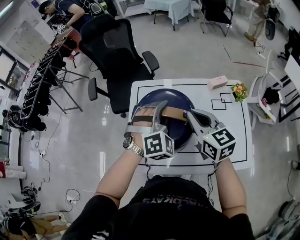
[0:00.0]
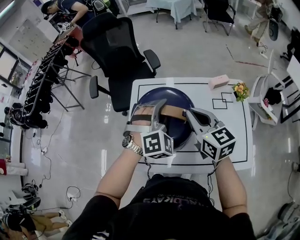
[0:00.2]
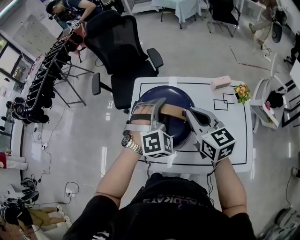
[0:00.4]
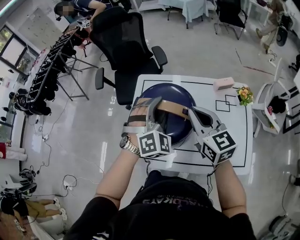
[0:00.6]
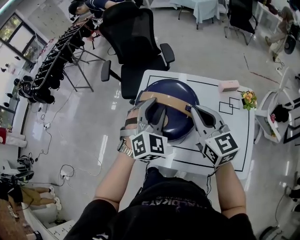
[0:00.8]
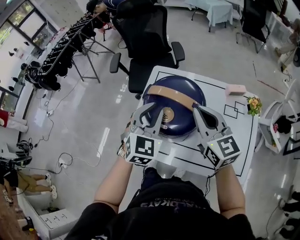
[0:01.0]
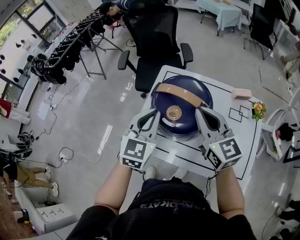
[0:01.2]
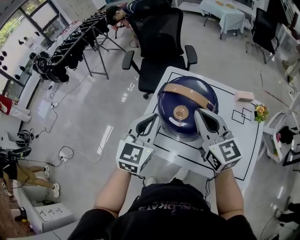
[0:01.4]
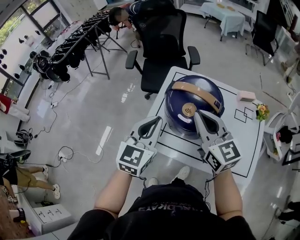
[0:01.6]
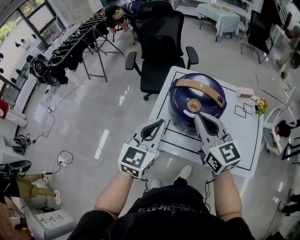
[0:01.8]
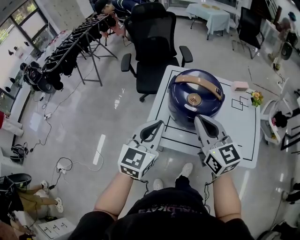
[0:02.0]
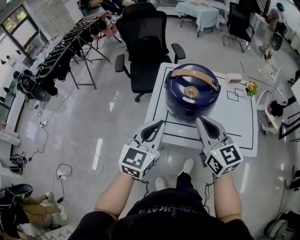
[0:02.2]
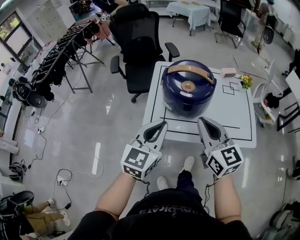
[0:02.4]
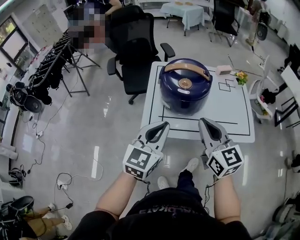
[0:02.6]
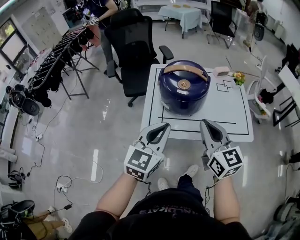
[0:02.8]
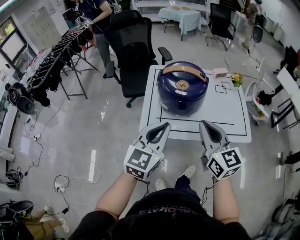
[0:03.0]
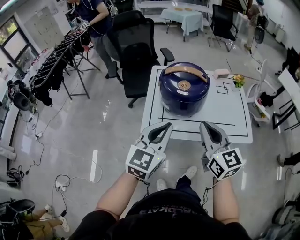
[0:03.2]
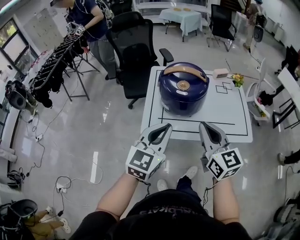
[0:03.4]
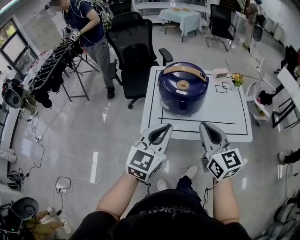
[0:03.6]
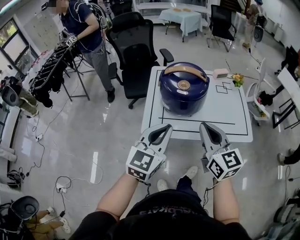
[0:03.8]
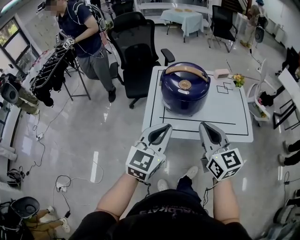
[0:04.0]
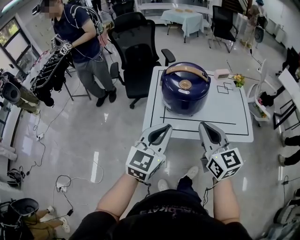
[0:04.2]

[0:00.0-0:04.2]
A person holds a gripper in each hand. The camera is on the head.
0:00.0 to 0:01.4: The right gripper travels to the left and backward by about 10 cm, and changes its angle by approximately 20 degrees, while the left gripper shifts some 20 cm to the left and backward, rotates around the line of its fingers by some 60 degrees, counterclockwise from behind, and closes up.
0:01.4 to 0:02.8: The two grippers go about 20 cm backward. The left gripper turns by some 30 degrees; the right gripper changes its angle by approximately 20 degrees.
0:02.8 to 0:04.2: The grippers make only small movements.

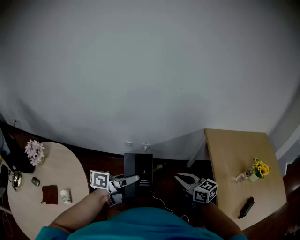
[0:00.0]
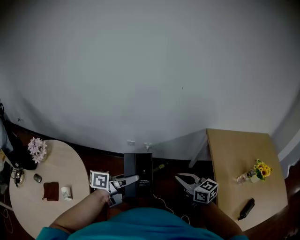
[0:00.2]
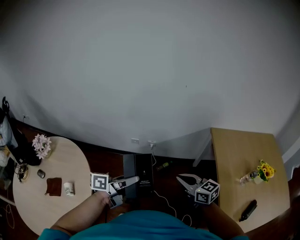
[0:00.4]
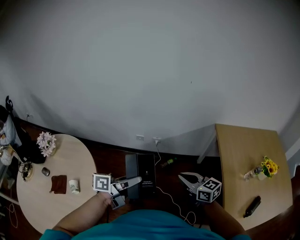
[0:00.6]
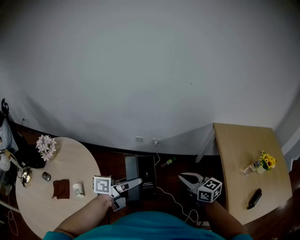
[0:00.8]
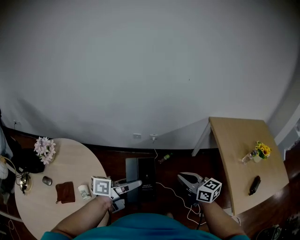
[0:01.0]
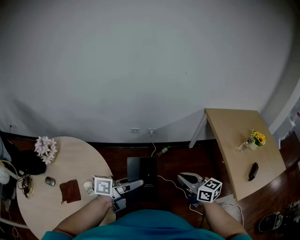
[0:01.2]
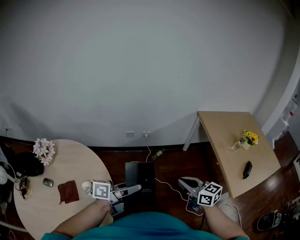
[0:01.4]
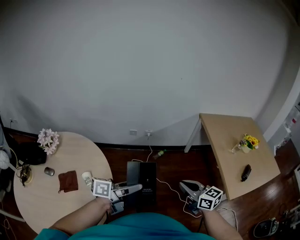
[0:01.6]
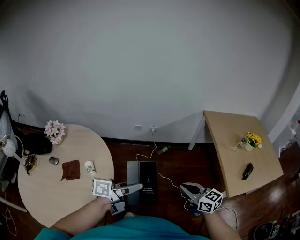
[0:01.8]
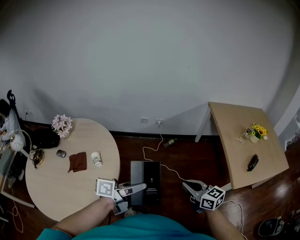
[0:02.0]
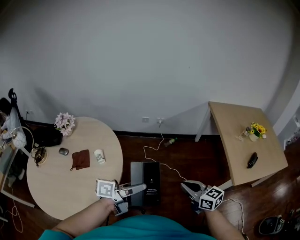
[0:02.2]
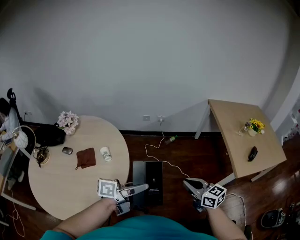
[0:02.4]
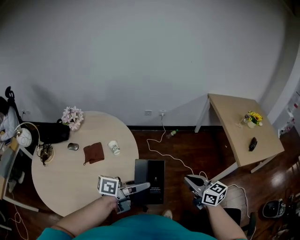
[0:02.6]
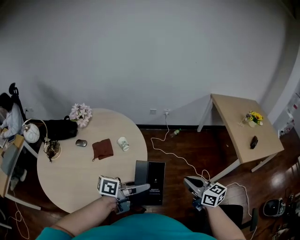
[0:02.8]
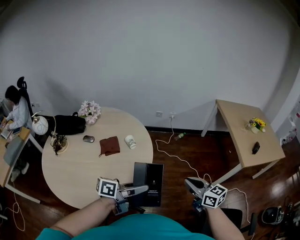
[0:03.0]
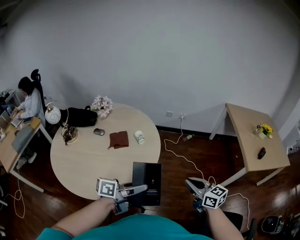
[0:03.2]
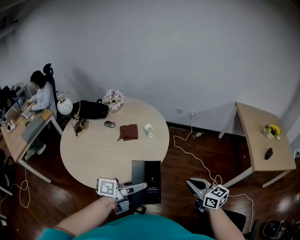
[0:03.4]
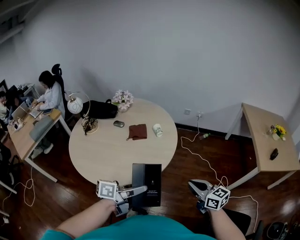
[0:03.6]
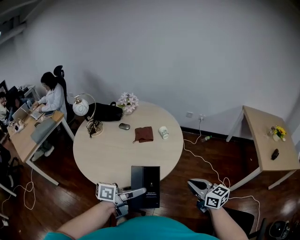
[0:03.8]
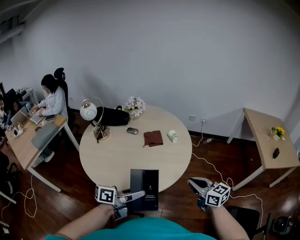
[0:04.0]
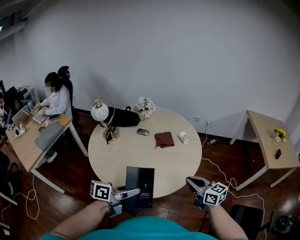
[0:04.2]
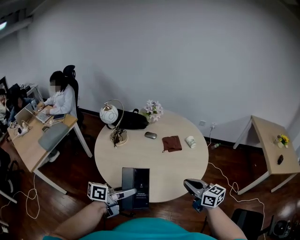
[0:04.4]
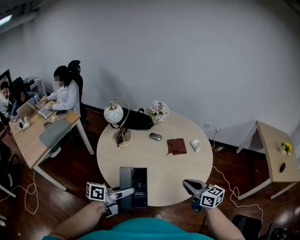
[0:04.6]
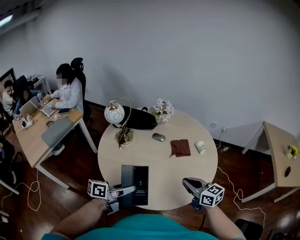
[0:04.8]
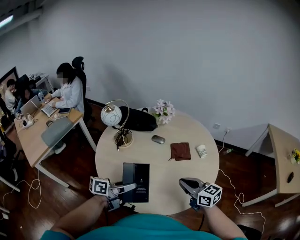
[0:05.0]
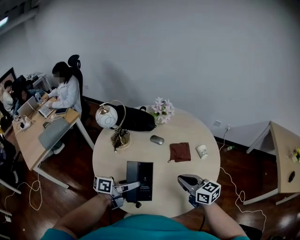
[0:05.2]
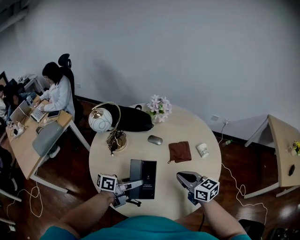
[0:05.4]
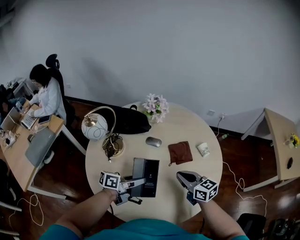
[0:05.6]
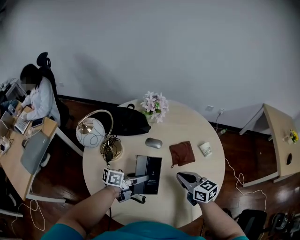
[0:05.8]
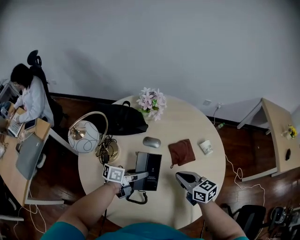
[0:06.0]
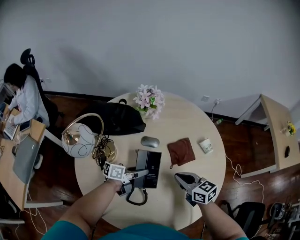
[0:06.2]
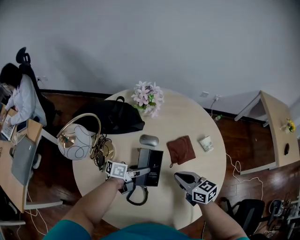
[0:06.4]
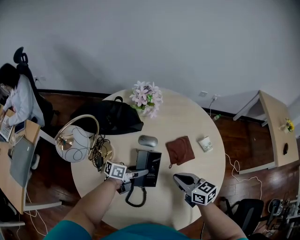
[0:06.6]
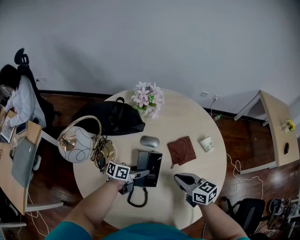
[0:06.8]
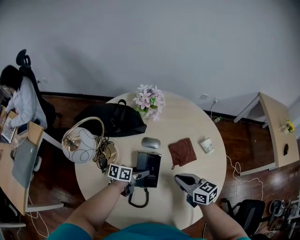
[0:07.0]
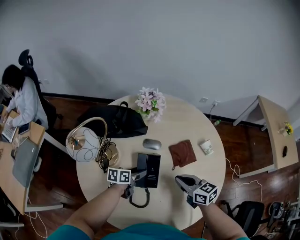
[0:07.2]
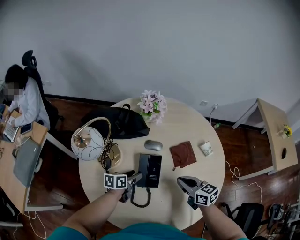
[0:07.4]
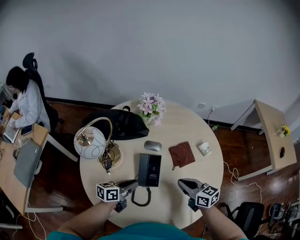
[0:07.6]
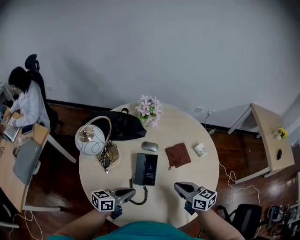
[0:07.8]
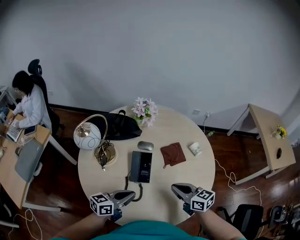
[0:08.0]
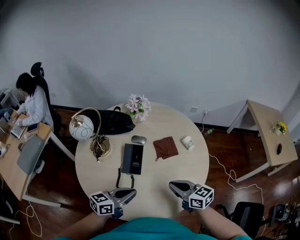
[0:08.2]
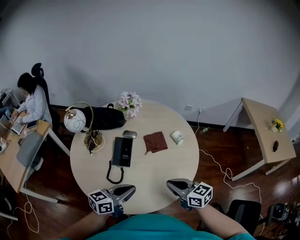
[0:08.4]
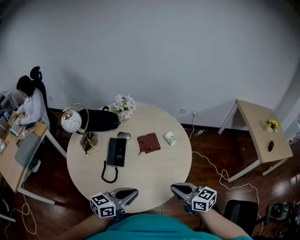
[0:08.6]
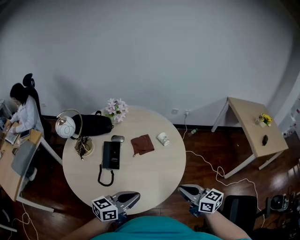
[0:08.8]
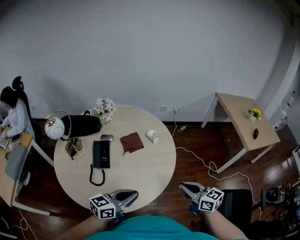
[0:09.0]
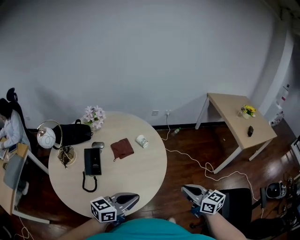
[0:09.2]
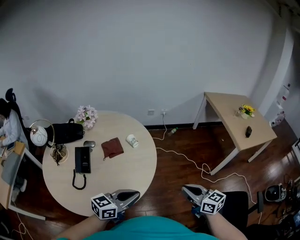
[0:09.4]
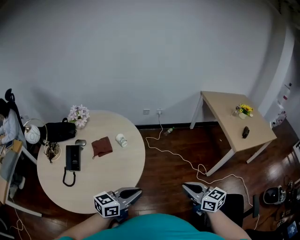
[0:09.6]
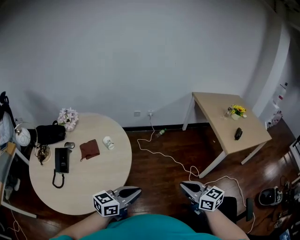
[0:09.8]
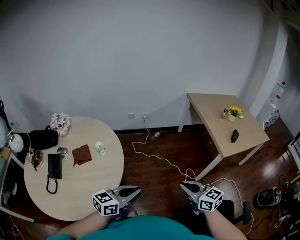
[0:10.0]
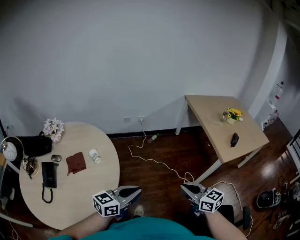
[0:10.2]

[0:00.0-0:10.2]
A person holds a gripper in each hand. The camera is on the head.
0:00.0 to 0:01.4: Both grippers move backward and to the left, some 25 cm.
0:01.4 to 0:03.0: The grippers both shift backward by approximately 35 cm.
0:03.0 to 0:04.4: The left gripper heads to the left and backward, covering about 40 cm. Meanwhile the right gripper heads to the left, covering some 35 cm.
0:04.4 to 0:05.8: The left gripper travels forward and downward by roughly 35 cm, while the right gripper travels forward, downward and to the left by some 30 cm.
0:05.8 to 0:07.2: The left gripper moves downward and forward, roughly 15 cm, swivels roughly 20 degrees, and opens its fingers.
0:07.2 to 0:08.8: The left gripper travels backward, upward and to the right by some 40 cm, rotates roughly 40 degrees, and closes up. The right gripper travels to the right, backward and upward by roughly 35 cm.
0:08.8 to 0:10.2: Both grippers are carried to the right and forward, some 40 cm.

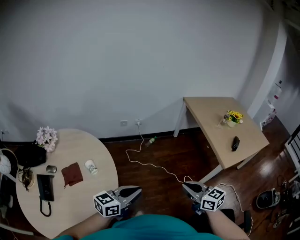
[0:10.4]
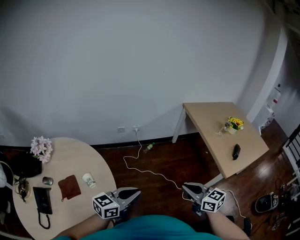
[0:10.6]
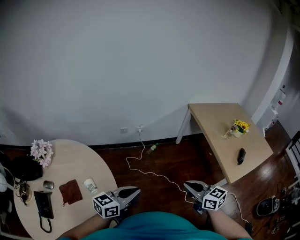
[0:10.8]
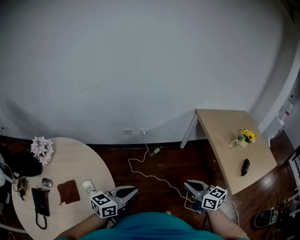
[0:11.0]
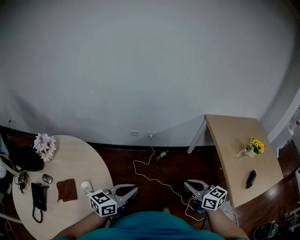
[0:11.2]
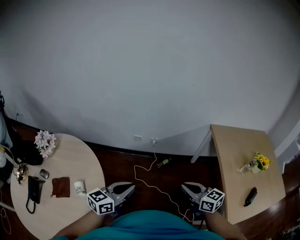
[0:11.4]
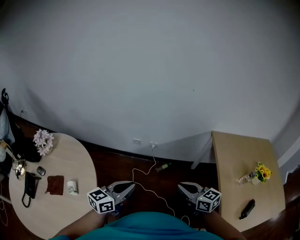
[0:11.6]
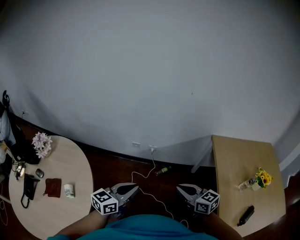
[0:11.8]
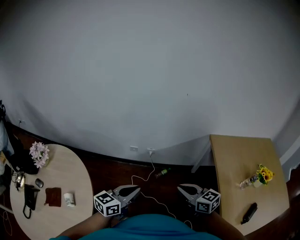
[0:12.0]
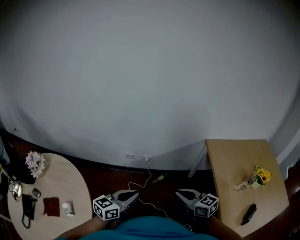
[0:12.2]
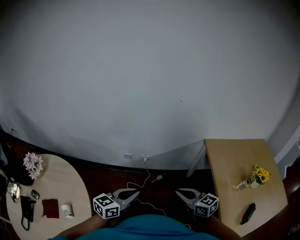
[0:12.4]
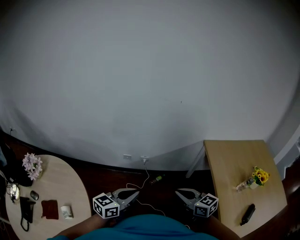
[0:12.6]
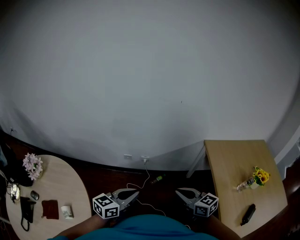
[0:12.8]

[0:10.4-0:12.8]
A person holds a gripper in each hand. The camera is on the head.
0:10.4 to 0:11.6: The grippers both shift forward by some 35 cm. The right gripper rotates approximately 20 degrees. The left gripper turns by roughly 20 degrees.
0:11.6 to 0:12.8: The two grippers go approximately 10 cm forward.

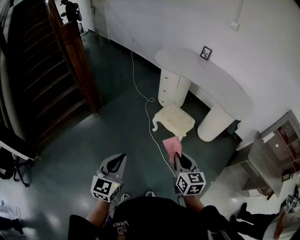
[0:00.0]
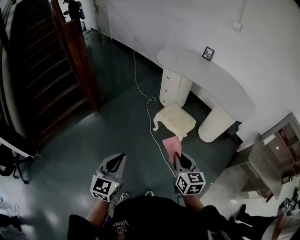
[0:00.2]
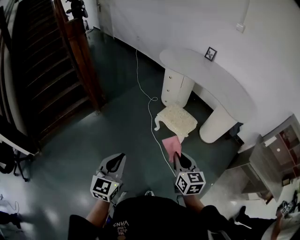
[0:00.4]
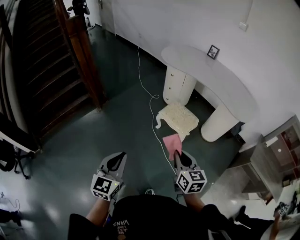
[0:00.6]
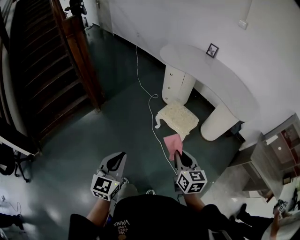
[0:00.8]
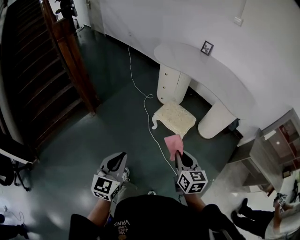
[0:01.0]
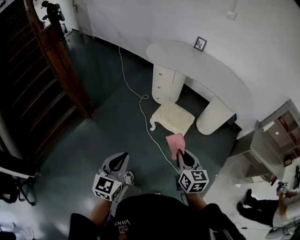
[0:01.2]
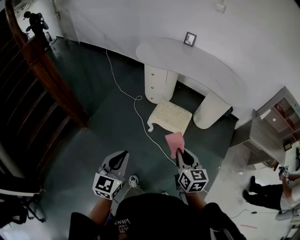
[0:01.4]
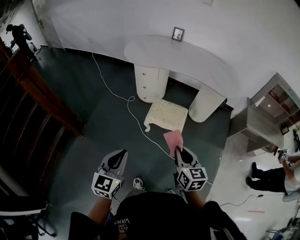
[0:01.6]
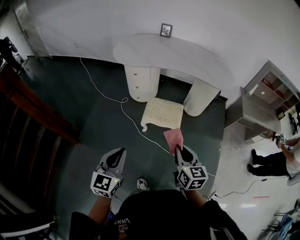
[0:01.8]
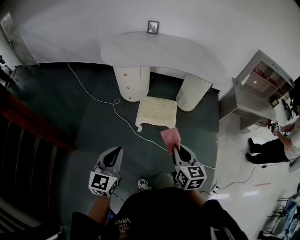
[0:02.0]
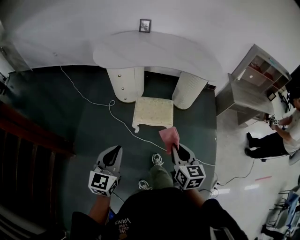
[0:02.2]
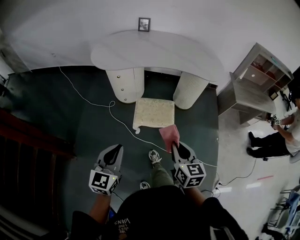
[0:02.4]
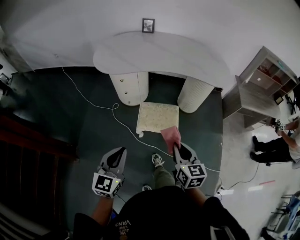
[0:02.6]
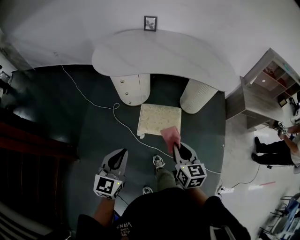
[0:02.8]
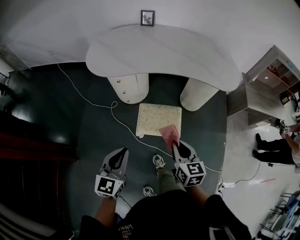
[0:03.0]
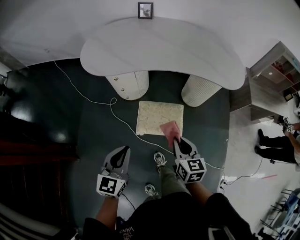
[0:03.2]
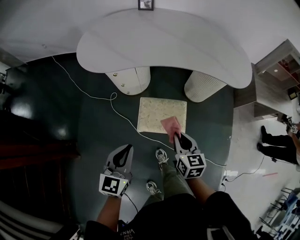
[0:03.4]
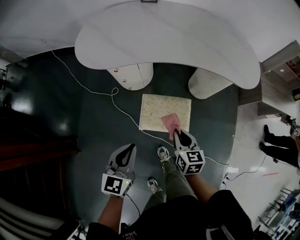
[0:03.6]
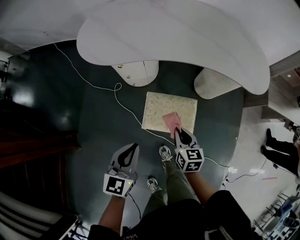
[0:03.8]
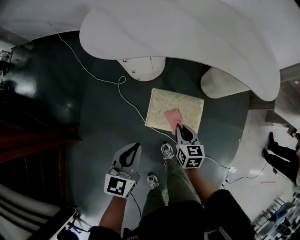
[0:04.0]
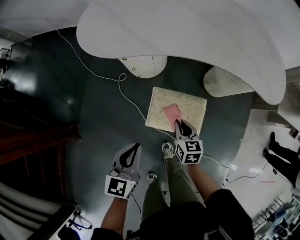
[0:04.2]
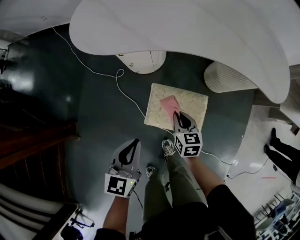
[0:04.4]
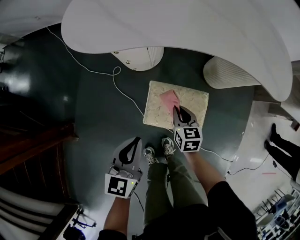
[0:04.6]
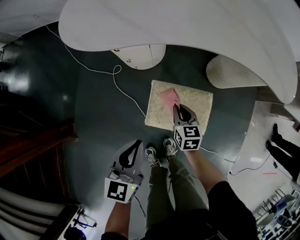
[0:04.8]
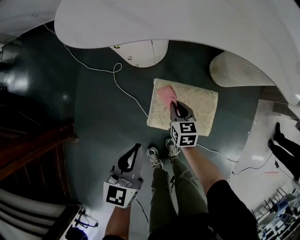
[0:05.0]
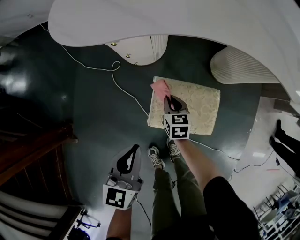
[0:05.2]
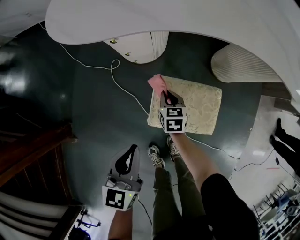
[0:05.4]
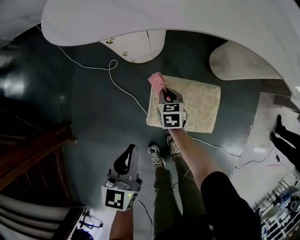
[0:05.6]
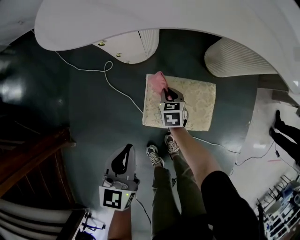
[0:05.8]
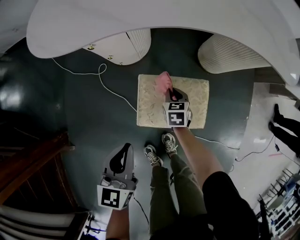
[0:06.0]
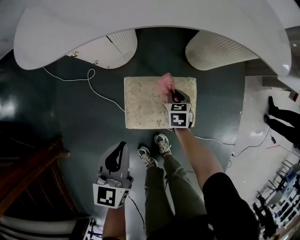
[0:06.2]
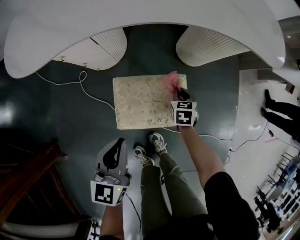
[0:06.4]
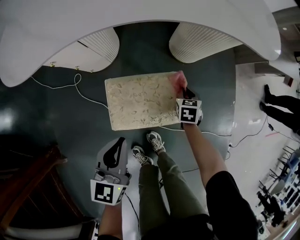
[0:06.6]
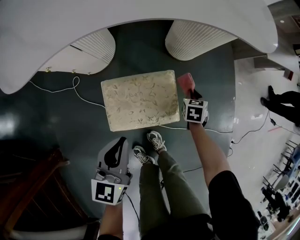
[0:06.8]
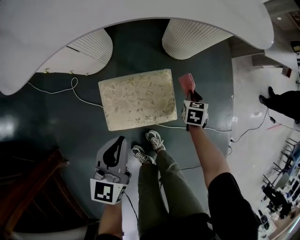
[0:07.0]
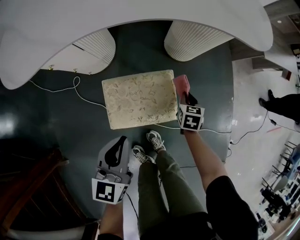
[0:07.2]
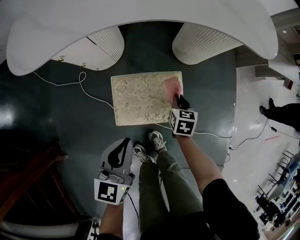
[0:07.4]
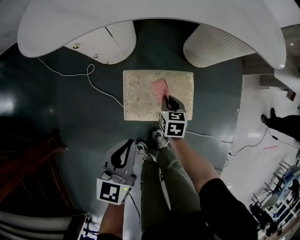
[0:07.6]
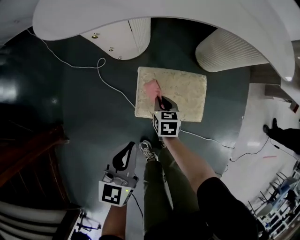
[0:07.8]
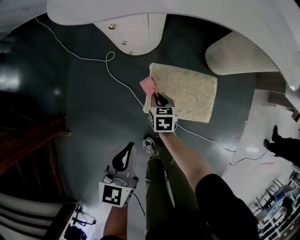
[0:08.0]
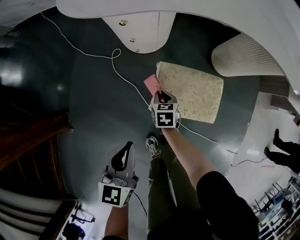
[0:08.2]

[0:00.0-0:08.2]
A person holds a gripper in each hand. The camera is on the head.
0:00.0 to 0:01.6: The right gripper shifts by about 15 cm, and turns by about 20 degrees, while the left gripper ends up approximately 25 cm from where it was, and changes its angle by some 20 degrees.
0:01.6 to 0:03.2: The grippers both shift forward by some 30 cm.
0:03.2 to 0:05.0: The left gripper shifts about 20 cm downward and forward. The right gripper moves downward and forward, some 40 cm.
0:05.0 to 0:06.6: The right gripper shifts by some 30 cm, and changes its angle by approximately 30 degrees. Meanwhile the left gripper ends up roughly 15 cm from where it was.
0:06.6 to 0:08.2: The right gripper ends up some 35 cm from where it was, and swivels approximately 30 degrees; the left gripper shifts by about 20 cm.
